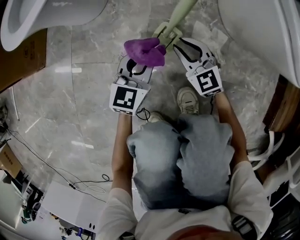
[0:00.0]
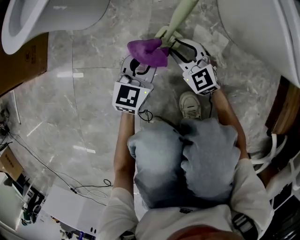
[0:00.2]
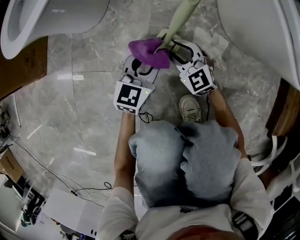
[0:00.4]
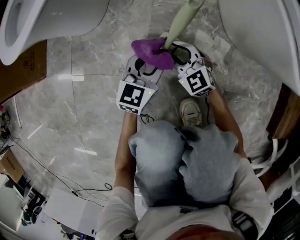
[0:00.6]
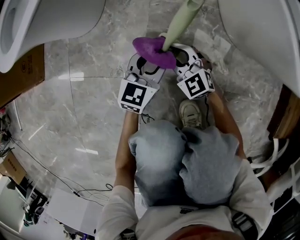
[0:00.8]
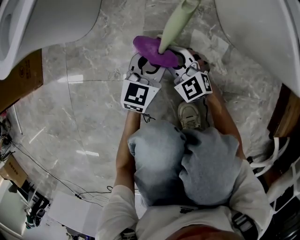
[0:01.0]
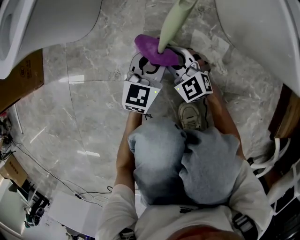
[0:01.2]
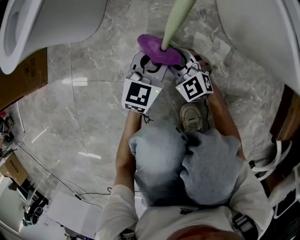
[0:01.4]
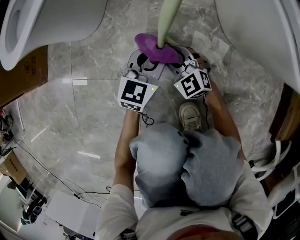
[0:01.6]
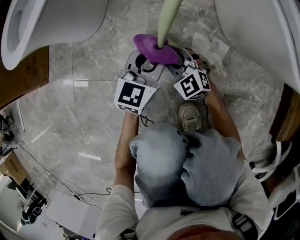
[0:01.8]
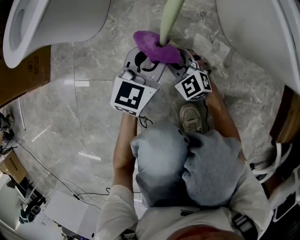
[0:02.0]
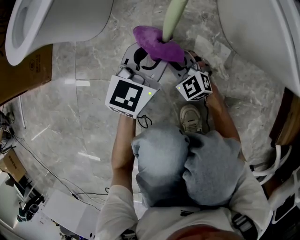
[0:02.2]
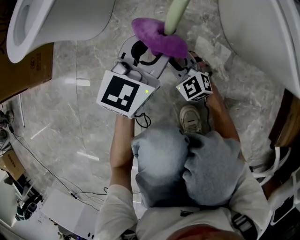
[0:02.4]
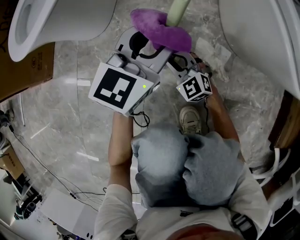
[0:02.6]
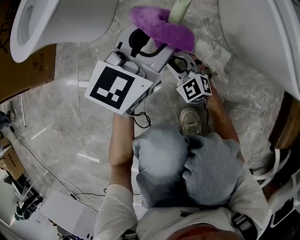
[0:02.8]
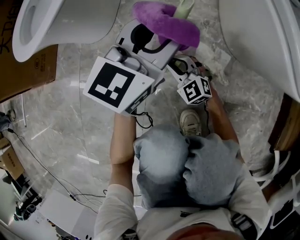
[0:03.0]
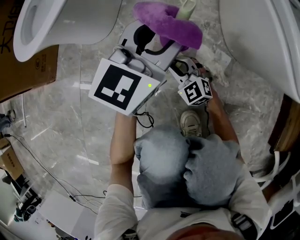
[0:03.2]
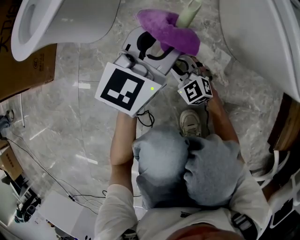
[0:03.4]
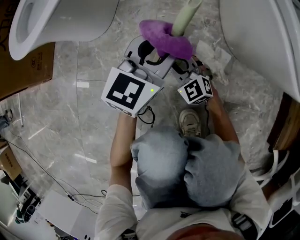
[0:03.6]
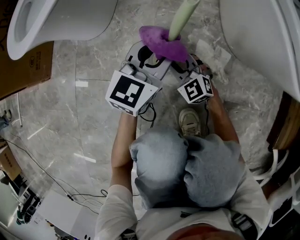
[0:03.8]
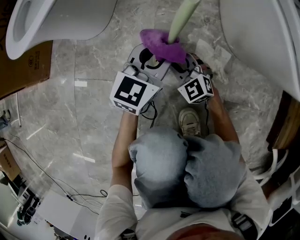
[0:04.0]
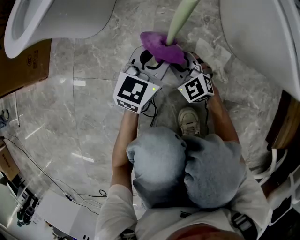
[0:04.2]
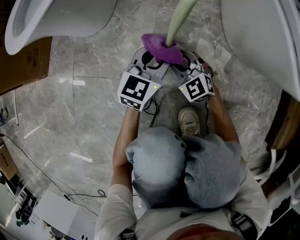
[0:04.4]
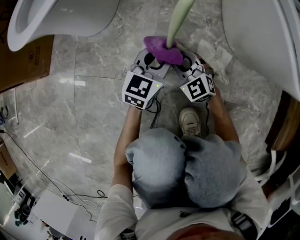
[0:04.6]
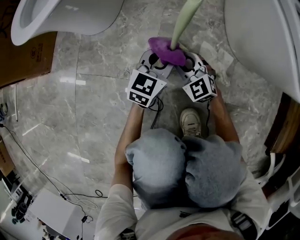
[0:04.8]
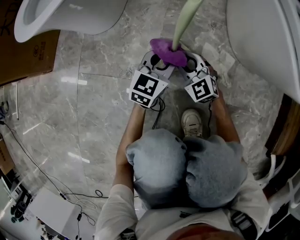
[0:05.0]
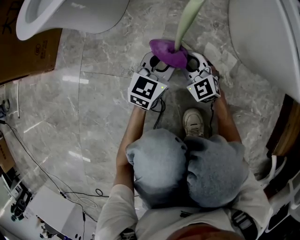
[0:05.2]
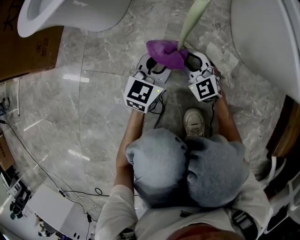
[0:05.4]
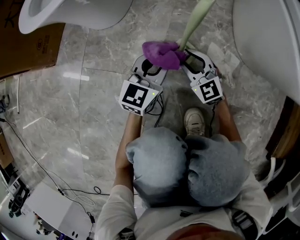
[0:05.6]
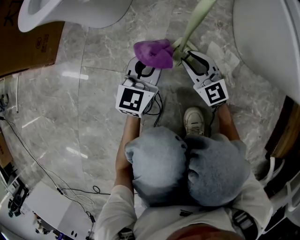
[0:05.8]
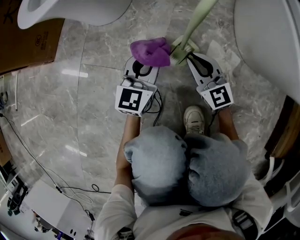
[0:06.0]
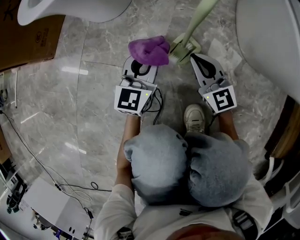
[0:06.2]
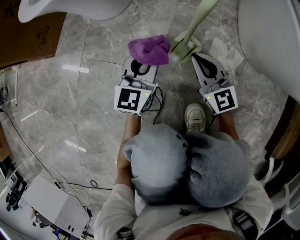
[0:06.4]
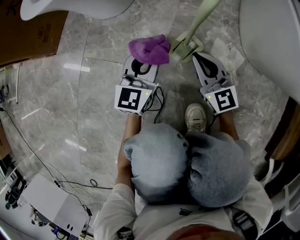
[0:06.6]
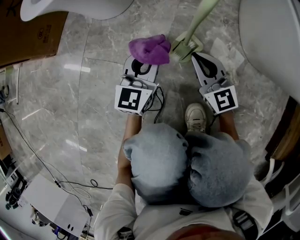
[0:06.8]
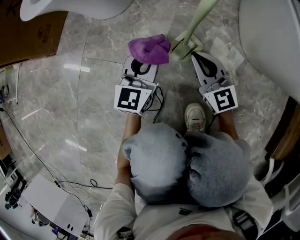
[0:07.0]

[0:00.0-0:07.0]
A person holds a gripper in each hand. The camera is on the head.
0:00.0 to 0:01.4: The left gripper moves to the right and forward, some 10 cm. Meanwhile the right gripper travels downward by roughly 5 cm.
0:01.4 to 0:02.8: The left gripper moves upward, roughly 15 cm.
0:02.8 to 0:04.2: The left gripper heads downward, covering roughly 15 cm.
0:04.2 to 0:05.6: The left gripper heads to the left, covering about 5 cm.
0:05.6 to 0:07.0: The left gripper shifts by roughly 5 cm. Meanwhile the right gripper travels upward by roughly 5 cm, changes its angle by some 20 degrees, and closes.

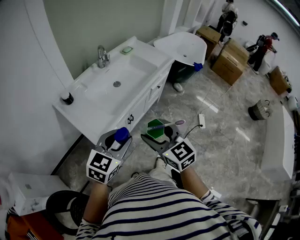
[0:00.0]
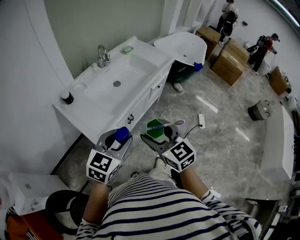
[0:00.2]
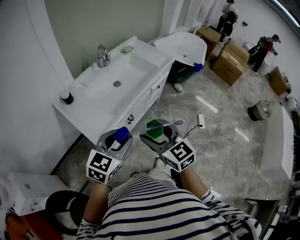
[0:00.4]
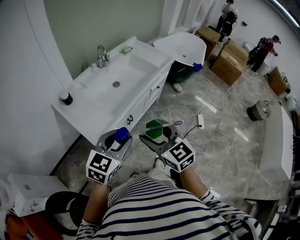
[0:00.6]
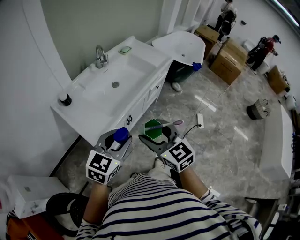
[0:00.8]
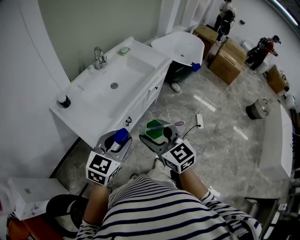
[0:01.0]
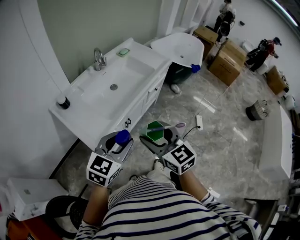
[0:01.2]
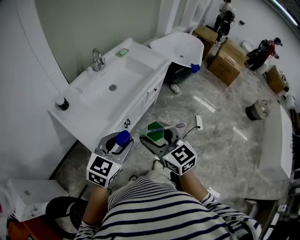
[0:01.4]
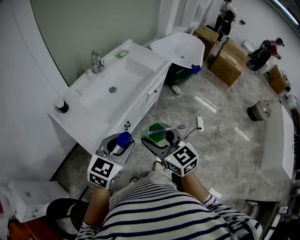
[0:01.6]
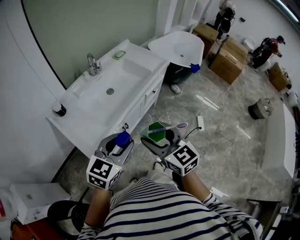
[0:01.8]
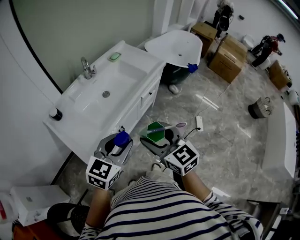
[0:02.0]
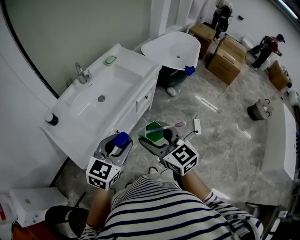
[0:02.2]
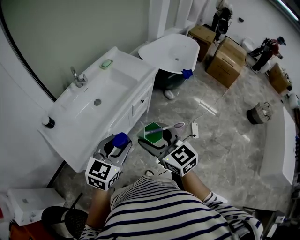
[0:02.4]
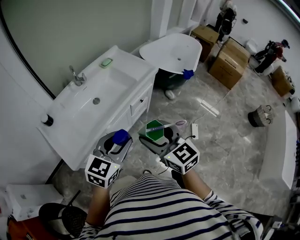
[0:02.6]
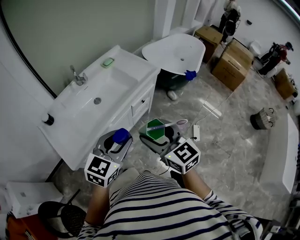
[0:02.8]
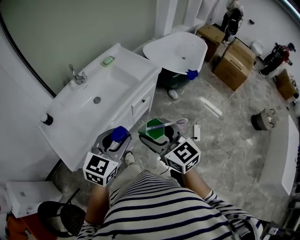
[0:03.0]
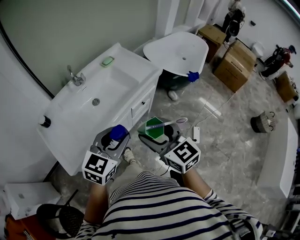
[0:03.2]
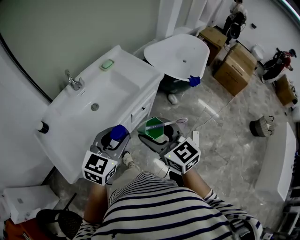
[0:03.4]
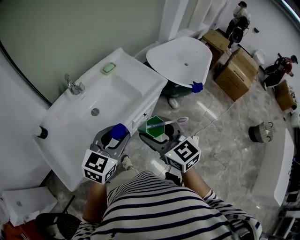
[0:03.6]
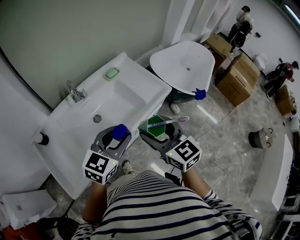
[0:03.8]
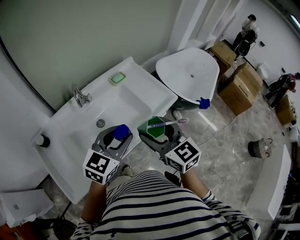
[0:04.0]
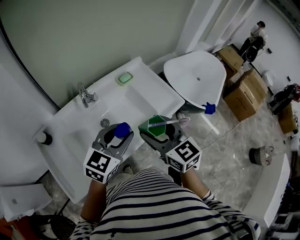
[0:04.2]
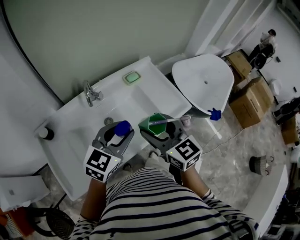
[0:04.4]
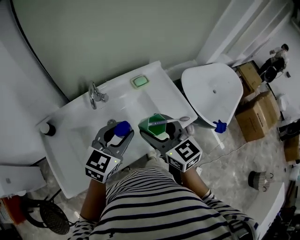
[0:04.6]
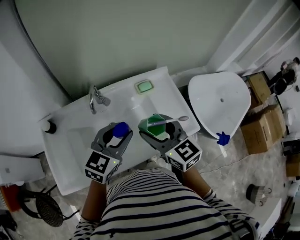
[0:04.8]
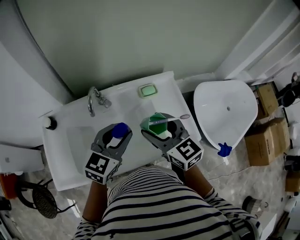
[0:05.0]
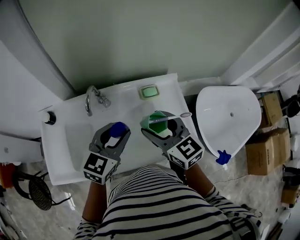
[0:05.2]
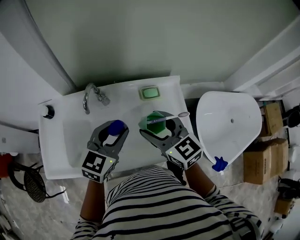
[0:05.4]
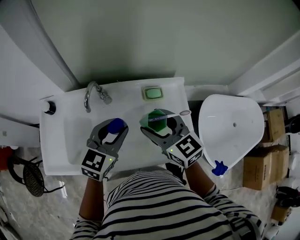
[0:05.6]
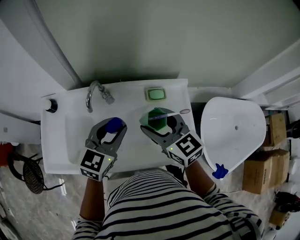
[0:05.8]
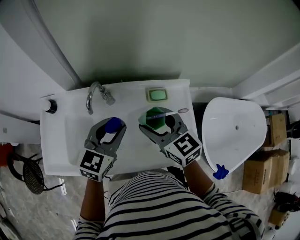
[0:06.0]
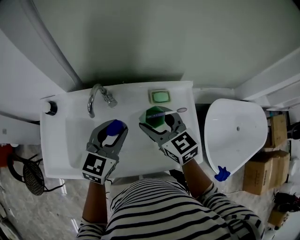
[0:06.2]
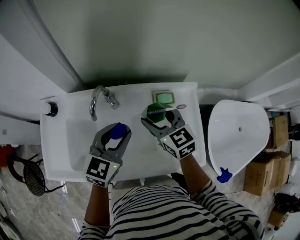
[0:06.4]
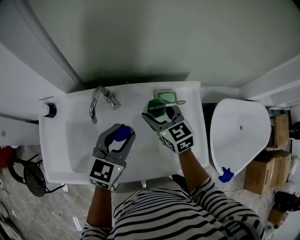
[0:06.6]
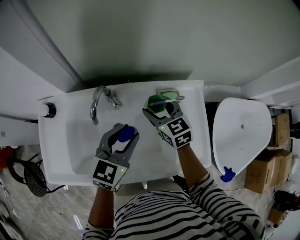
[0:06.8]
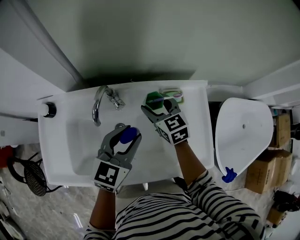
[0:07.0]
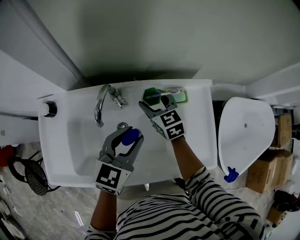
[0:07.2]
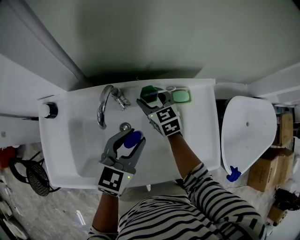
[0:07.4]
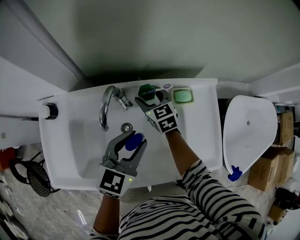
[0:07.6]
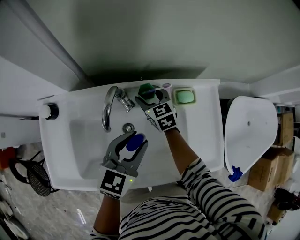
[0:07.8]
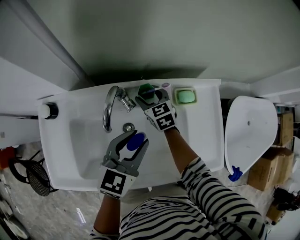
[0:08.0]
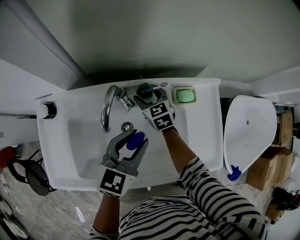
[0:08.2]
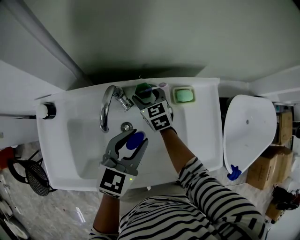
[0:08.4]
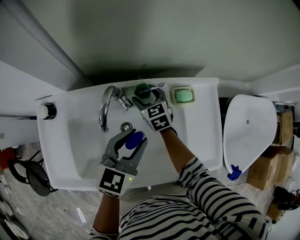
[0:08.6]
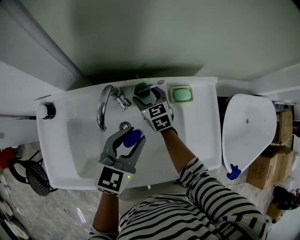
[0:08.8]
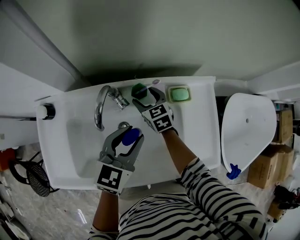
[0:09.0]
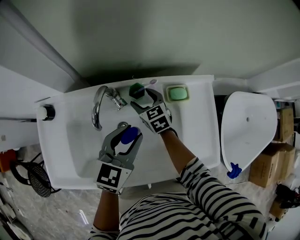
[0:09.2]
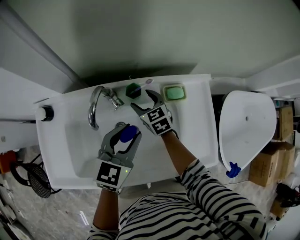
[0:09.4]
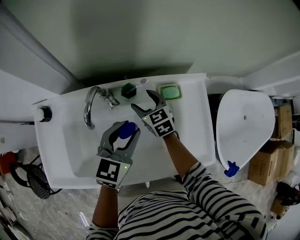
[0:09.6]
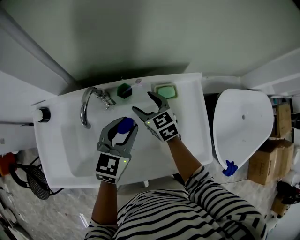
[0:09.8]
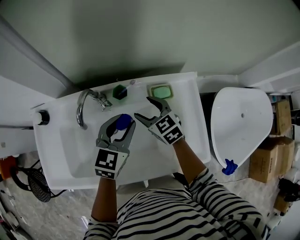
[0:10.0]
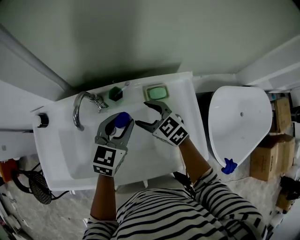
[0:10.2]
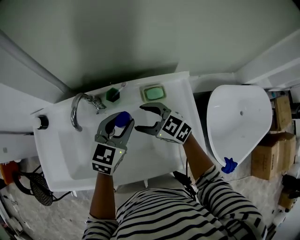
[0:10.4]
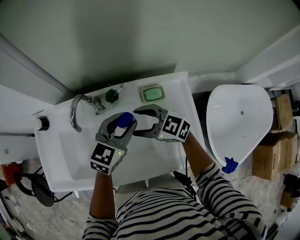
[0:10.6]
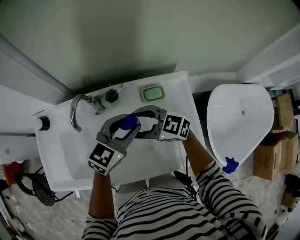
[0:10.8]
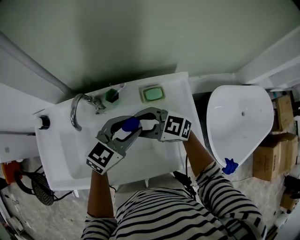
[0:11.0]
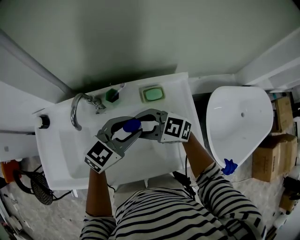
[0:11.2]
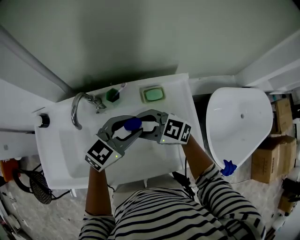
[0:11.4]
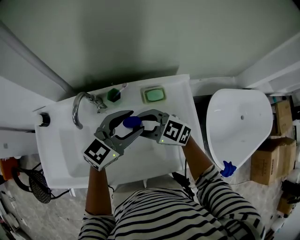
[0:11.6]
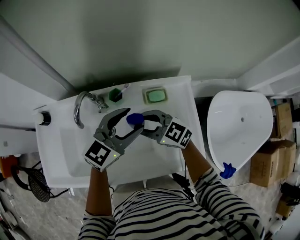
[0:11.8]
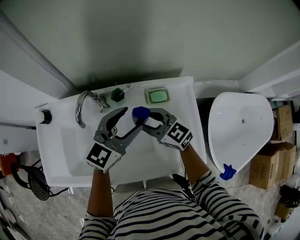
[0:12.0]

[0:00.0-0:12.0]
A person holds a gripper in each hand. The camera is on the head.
0:00.0 to 0:01.6: The grippers stay close to where they were, moving slightly.
0:01.6 to 0:03.0: The two grippers go approximately 20 cm to the right and forward.
0:03.0 to 0:04.4: Both grippers move forward, about 30 cm.
0:04.4 to 0:06.0: The left gripper moves about 15 cm, and turns by some 40 degrees. The right gripper changes place by about 20 cm, and changes its angle by some 30 degrees.
0:06.0 to 0:07.6: The right gripper shifts some 30 cm downward, forward and to the left. The left gripper goes about 10 cm downward.
0:07.6 to 0:09.0: The grippers make only small movements.
0:09.0 to 0:10.4: The right gripper shifts some 20 cm backward, upward and to the right, and rotates approximately 30 degrees. Meanwhile the left gripper is displaced to the right by roughly 10 cm.
0:10.4 to 0:12.0: The right gripper closes; the left gripper heads upward, covering some 5 cm, and opens up.

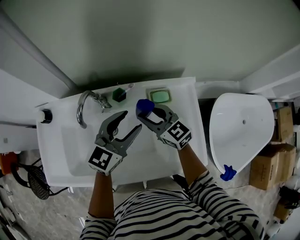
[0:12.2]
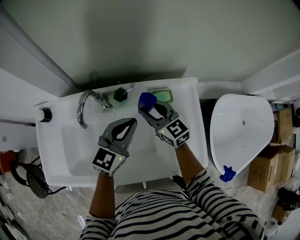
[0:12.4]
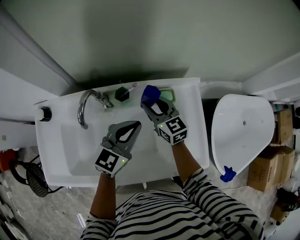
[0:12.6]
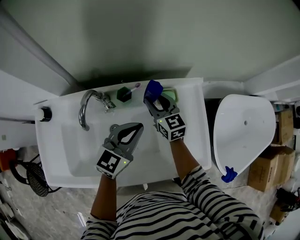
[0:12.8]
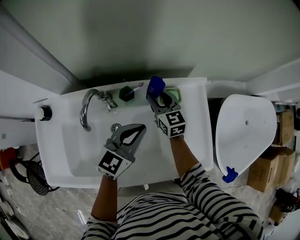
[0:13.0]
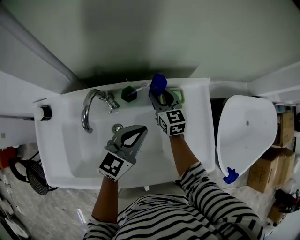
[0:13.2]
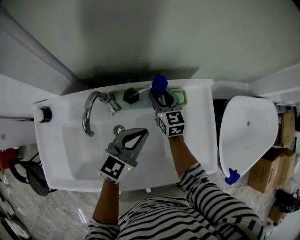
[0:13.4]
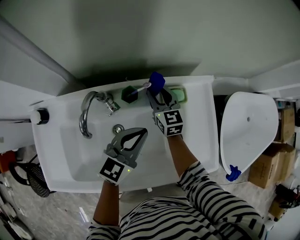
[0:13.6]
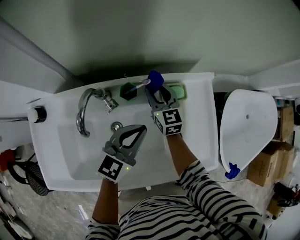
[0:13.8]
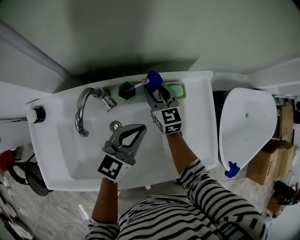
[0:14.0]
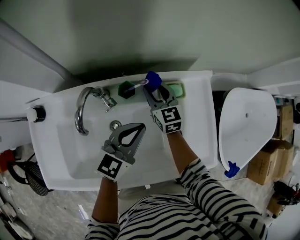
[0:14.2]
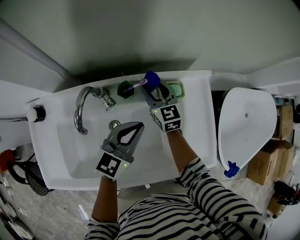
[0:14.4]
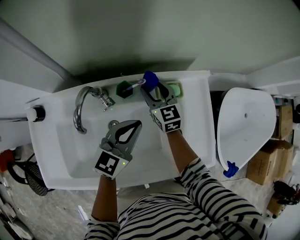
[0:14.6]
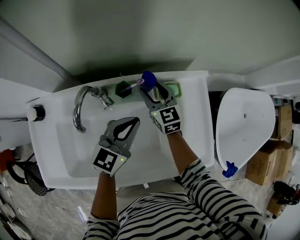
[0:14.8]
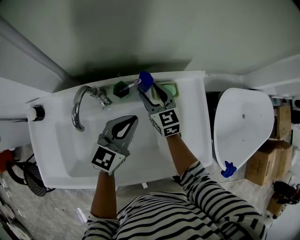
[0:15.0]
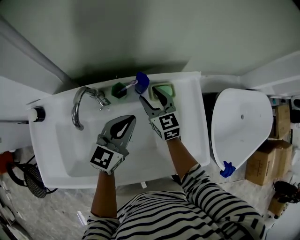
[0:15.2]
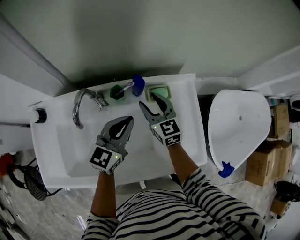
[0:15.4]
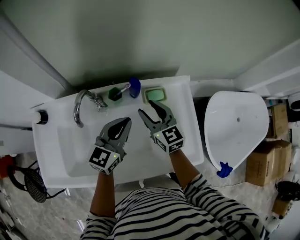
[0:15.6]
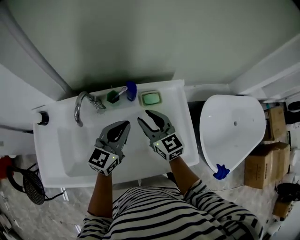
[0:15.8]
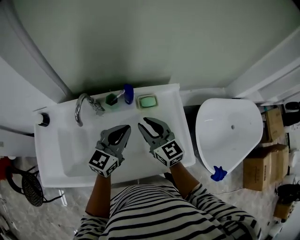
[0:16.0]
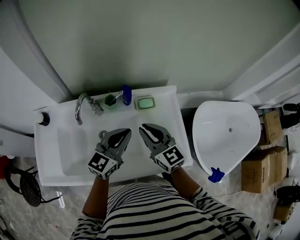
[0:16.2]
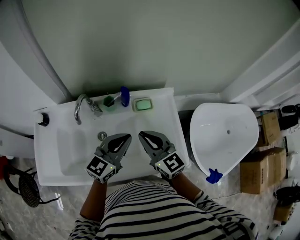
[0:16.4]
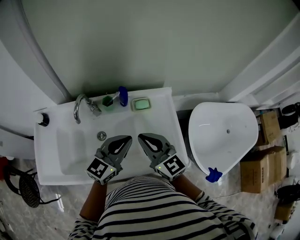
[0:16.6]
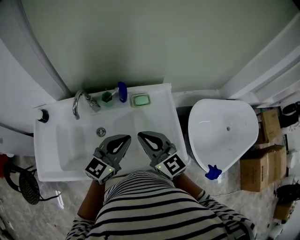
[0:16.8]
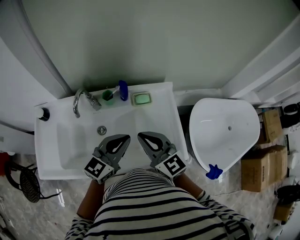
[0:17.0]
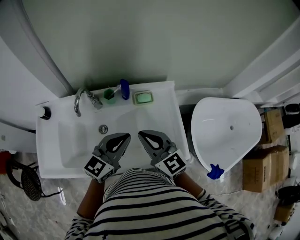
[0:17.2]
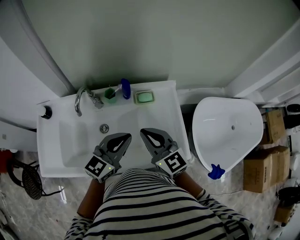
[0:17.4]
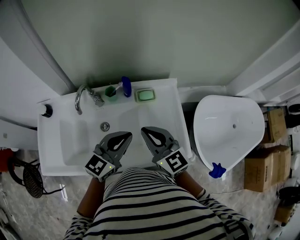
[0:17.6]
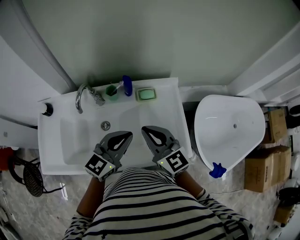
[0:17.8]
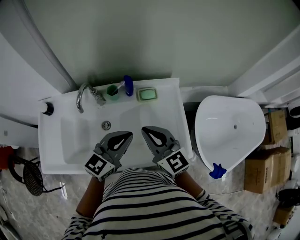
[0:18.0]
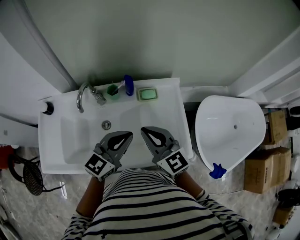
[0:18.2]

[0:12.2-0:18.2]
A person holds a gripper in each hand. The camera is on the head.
0:12.2 to 0:13.8: The right gripper travels forward and downward by approximately 15 cm, and swivels about 30 degrees. Meanwhile the left gripper travels downward by about 5 cm, and closes its fingers.
0:13.8 to 0:15.2: The right gripper shifts by some 5 cm.
0:15.2 to 0:16.6: The left gripper is displaced backward, upward and to the right by roughly 15 cm. Meanwhile the right gripper moves backward and upward, about 25 cm, and closes its fingers.
0:16.6 to 0:18.2: The grippers move only a little.
